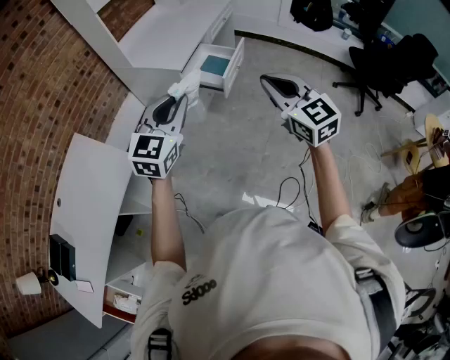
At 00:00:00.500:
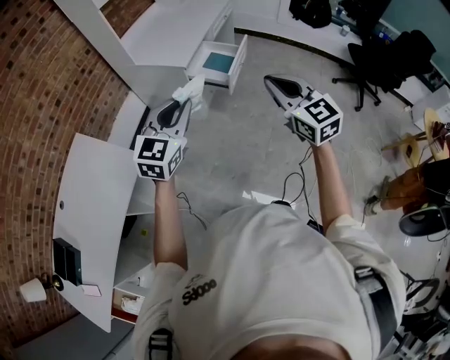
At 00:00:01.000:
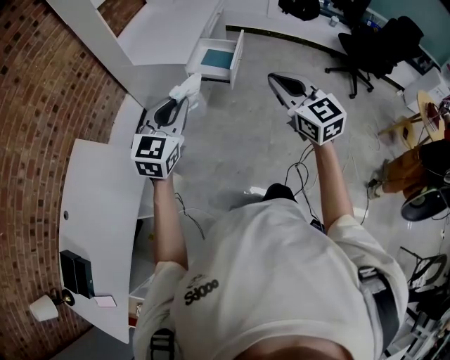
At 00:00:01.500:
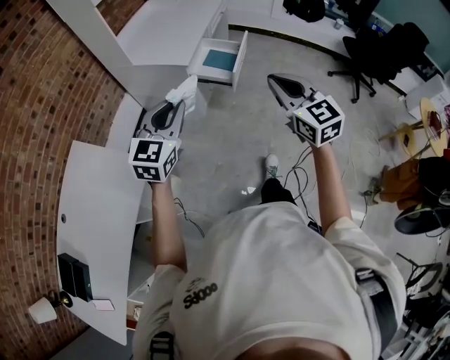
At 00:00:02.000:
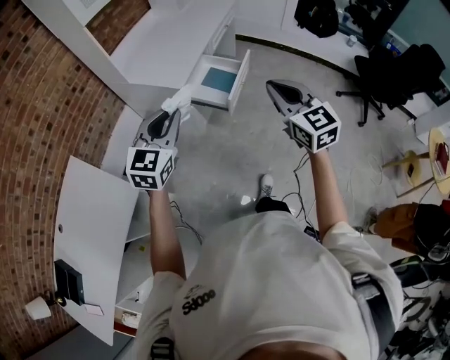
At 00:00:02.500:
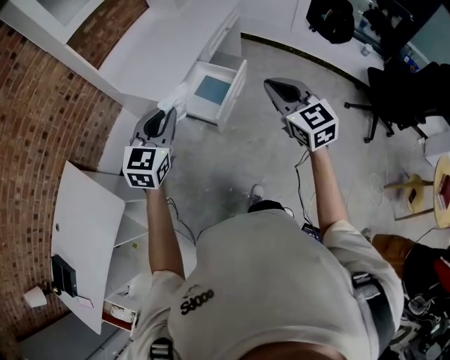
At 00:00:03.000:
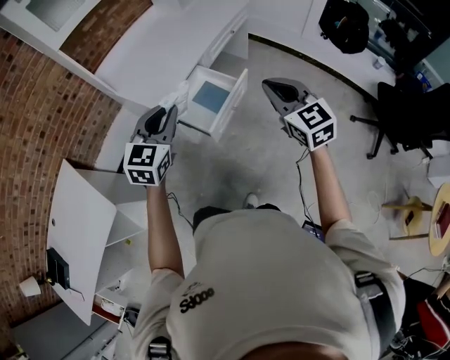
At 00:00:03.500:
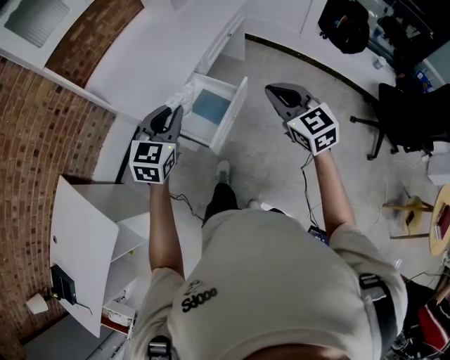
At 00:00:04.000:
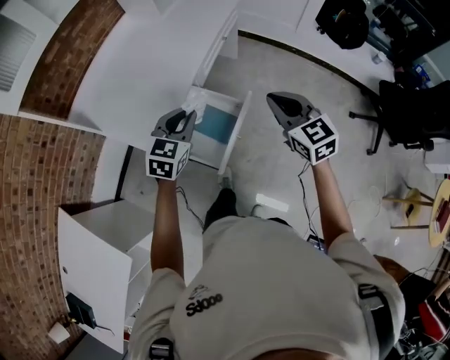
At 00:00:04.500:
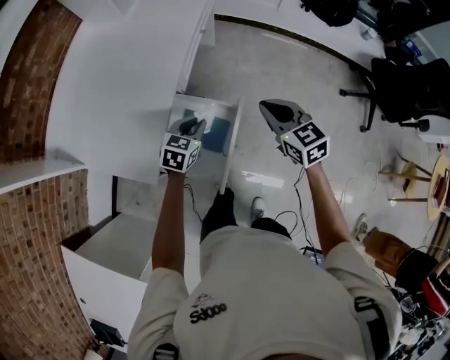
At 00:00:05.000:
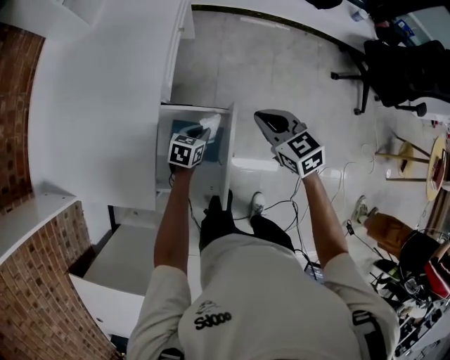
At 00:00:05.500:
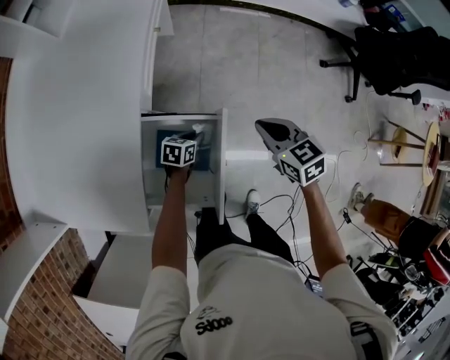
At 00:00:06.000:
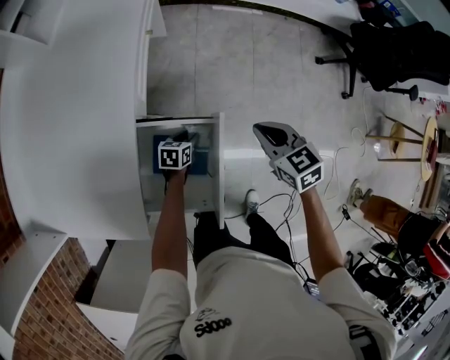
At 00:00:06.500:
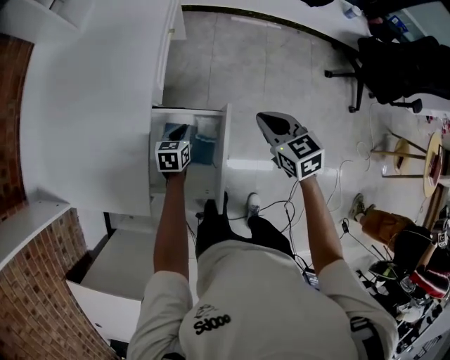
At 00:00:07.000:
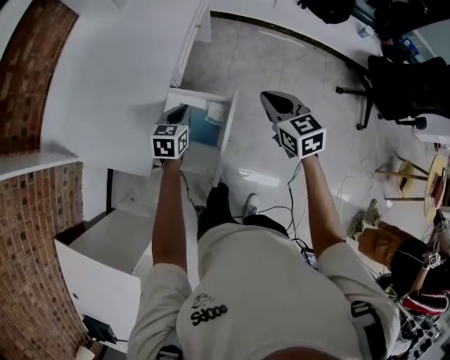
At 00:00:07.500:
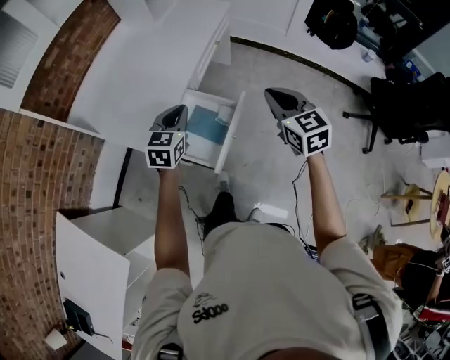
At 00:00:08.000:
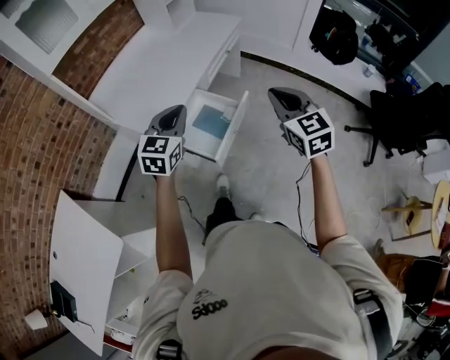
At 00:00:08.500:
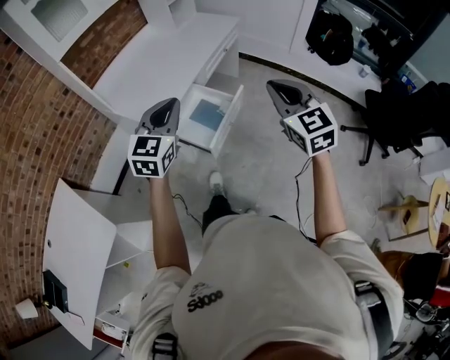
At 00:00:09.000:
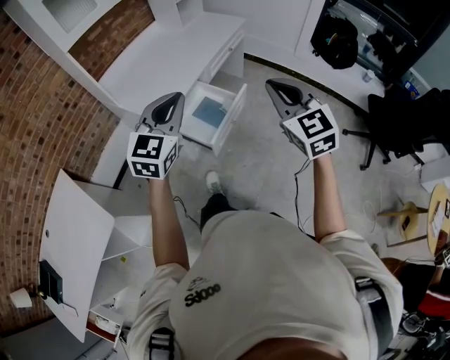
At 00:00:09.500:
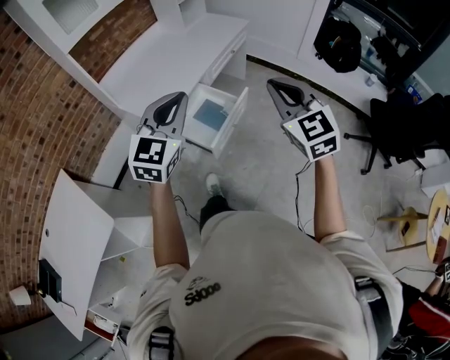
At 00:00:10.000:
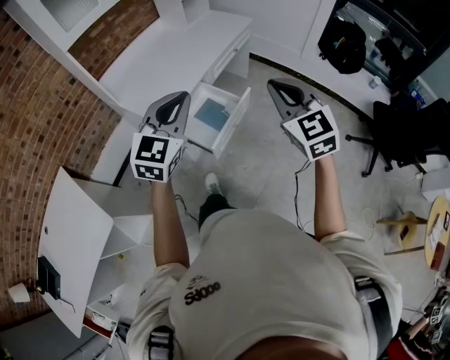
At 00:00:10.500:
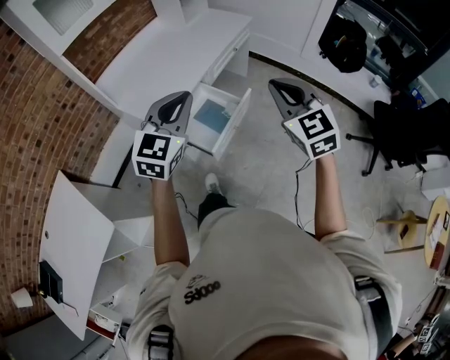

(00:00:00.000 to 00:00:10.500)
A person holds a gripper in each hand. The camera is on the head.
00:00:00.000 - 00:00:02.000: Both grippers move forward, some 15 cm.
00:00:02.000 - 00:00:04.000: Both grippers are carried forward, some 50 cm.
00:00:04.000 - 00:00:06.500: The right gripper shifts roughly 20 cm downward, and rotates about 30 degrees. The left gripper heads downward, covering approximately 35 cm, swivels roughly 30 degrees, and opens, then closes again.
00:00:06.500 - 00:00:08.500: Both grippers move backward, upward and to the left, roughly 50 cm. The left gripper points its fingers roughly 40 degrees further upward, while the right gripper changes its angle by about 40 degrees.
00:00:08.500 - 00:00:10.500: The right gripper shifts roughly 5 cm forward; the left gripper ends up about 5 cm from where it was.

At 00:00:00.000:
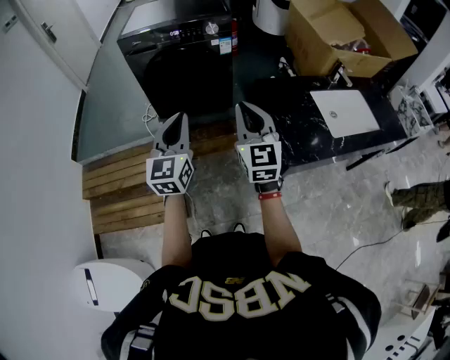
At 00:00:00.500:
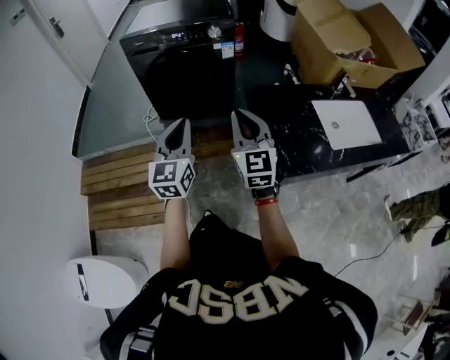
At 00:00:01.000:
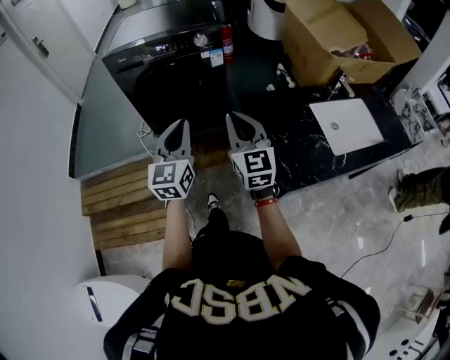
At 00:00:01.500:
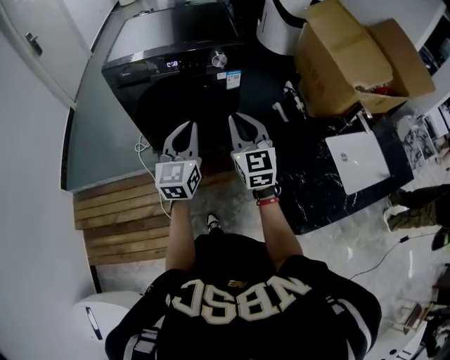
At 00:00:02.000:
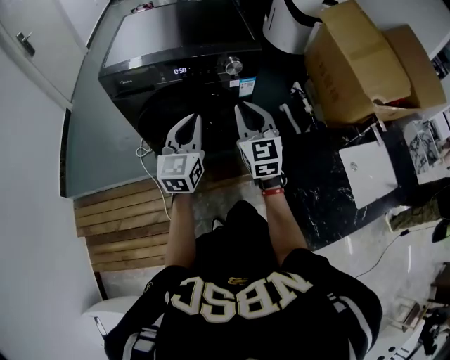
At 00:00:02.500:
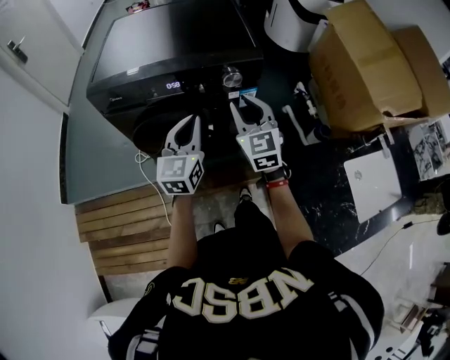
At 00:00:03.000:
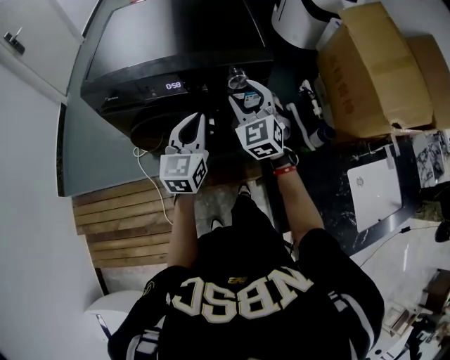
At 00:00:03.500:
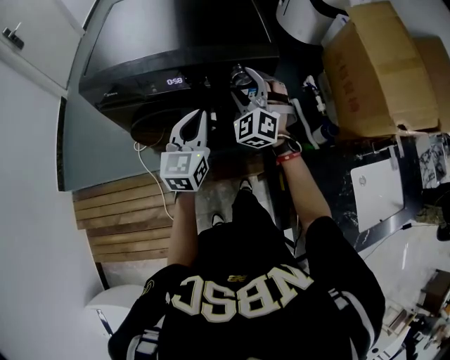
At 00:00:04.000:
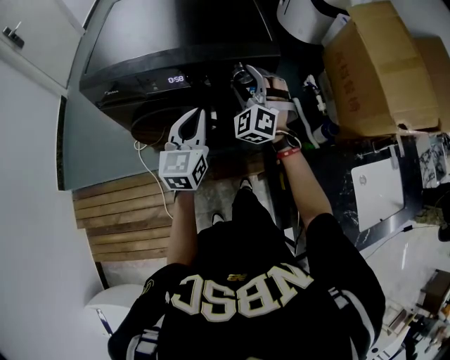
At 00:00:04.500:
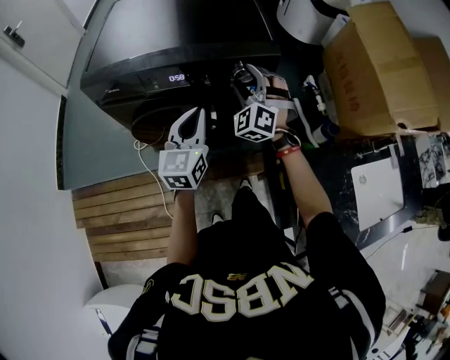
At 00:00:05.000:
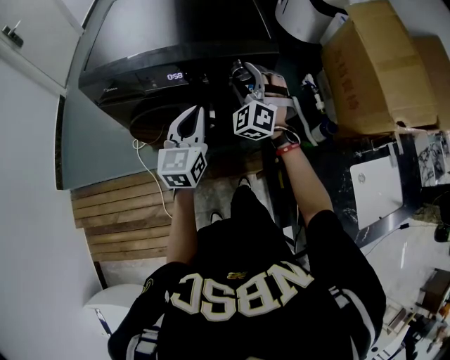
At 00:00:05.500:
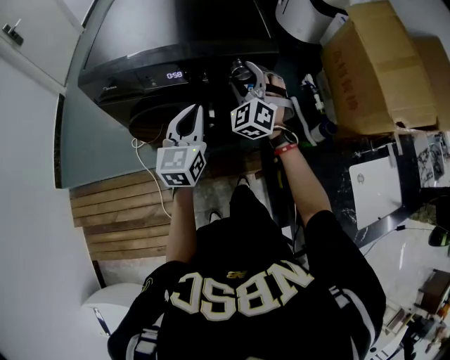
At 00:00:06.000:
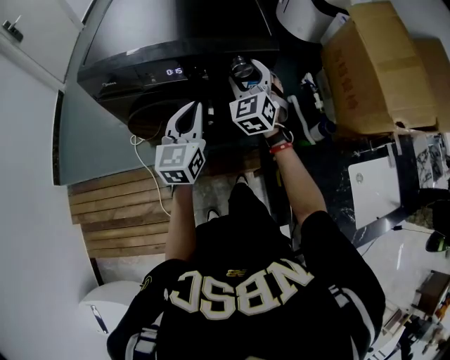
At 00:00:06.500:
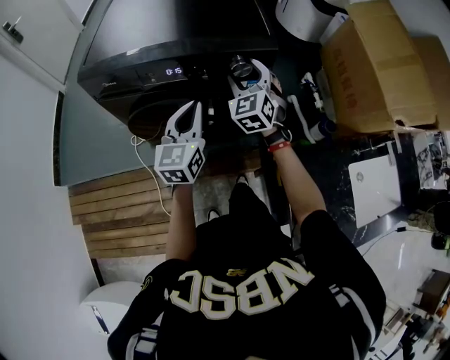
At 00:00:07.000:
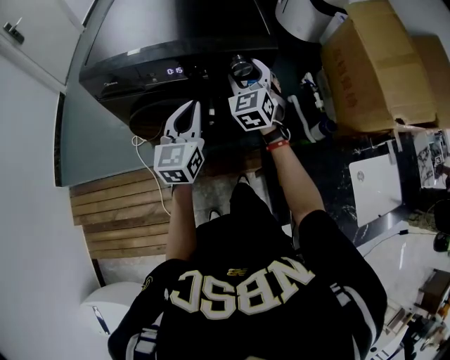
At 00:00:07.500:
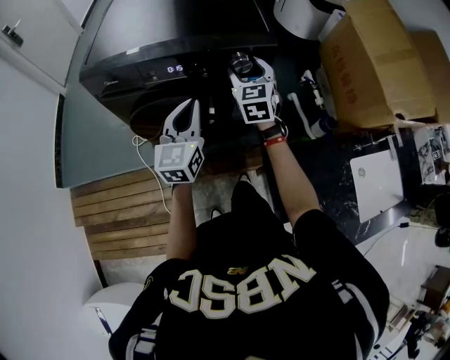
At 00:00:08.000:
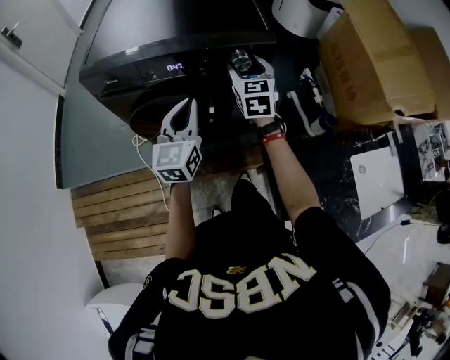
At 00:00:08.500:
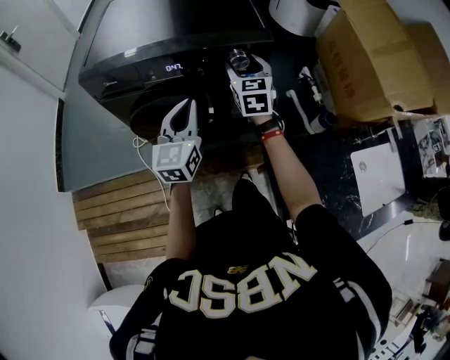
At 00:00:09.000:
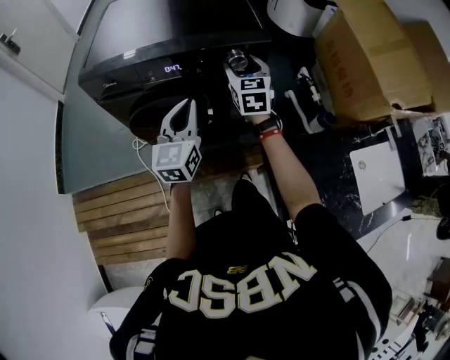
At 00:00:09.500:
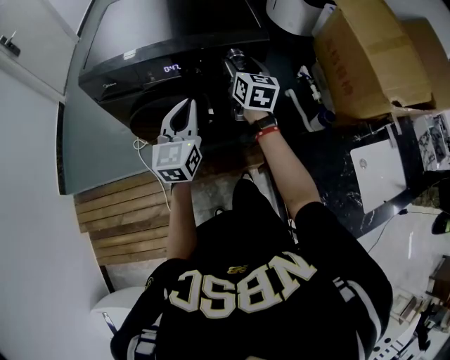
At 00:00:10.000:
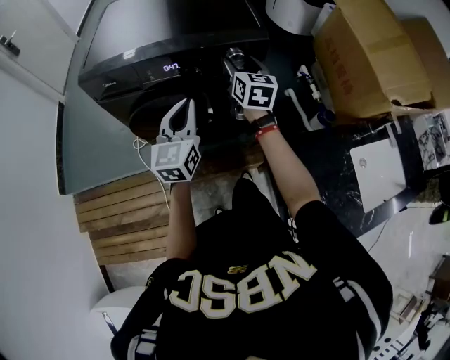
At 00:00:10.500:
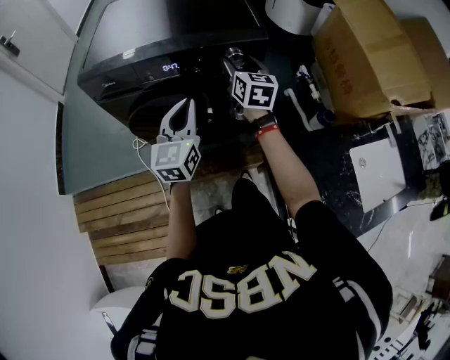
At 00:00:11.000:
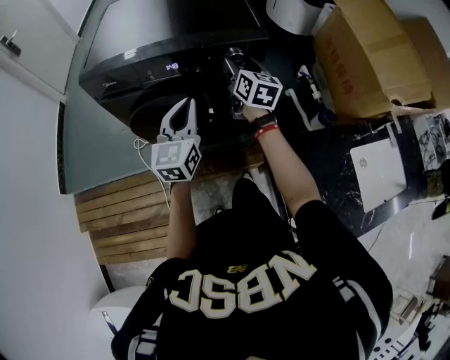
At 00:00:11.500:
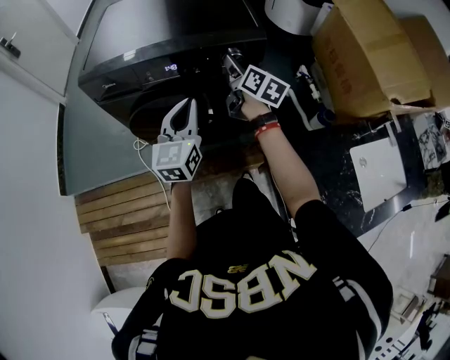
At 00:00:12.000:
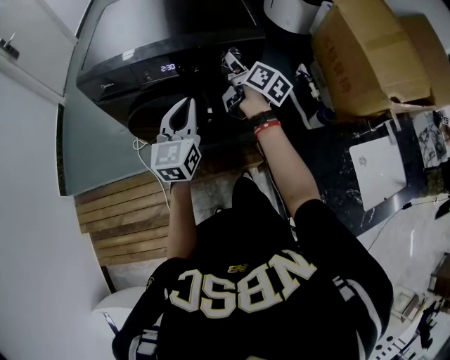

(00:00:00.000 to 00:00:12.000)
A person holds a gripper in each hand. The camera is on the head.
00:00:00.000 - 00:00:02.000: Both grippers travel together forward, some 35 cm.
00:00:02.000 - 00:00:04.000: The left gripper moves forward, approximately 10 cm. Meanwhile the right gripper moves forward, roughly 20 cm, rolls counterclockwise, seen from behind, by about 50 degrees, and opens.
00:00:04.000 - 00:00:06.000: The right gripper swivels approximately 30 degrees.
00:00:06.000 - 00:00:08.000: The right gripper swivels some 30 degrees.
00:00:08.000 - 00:00:10.000: The right gripper rotates about 20 degrees.
00:00:10.000 - 00:00:12.000: The right gripper rolls clockwise, seen from behind, by about 40 degrees.

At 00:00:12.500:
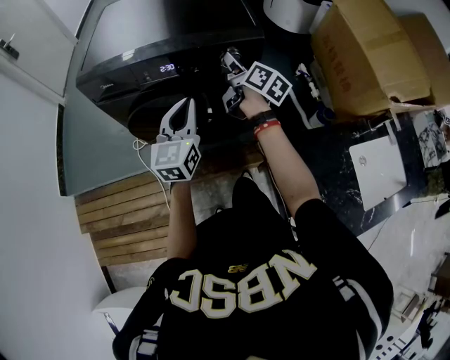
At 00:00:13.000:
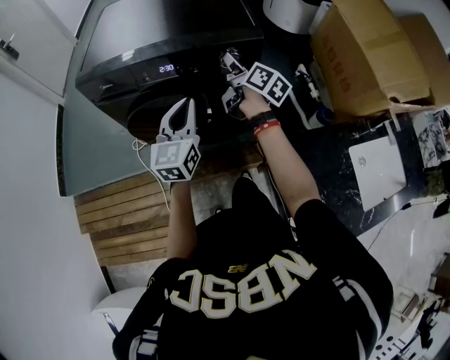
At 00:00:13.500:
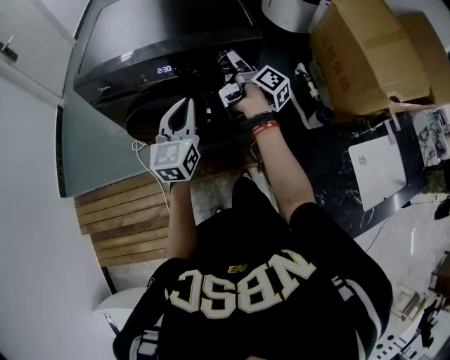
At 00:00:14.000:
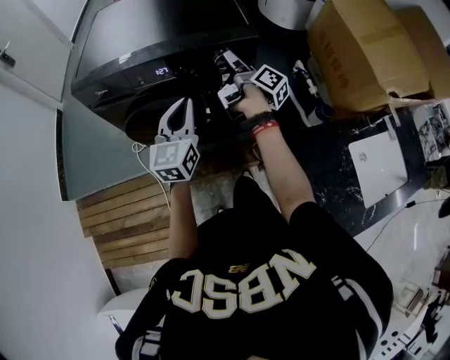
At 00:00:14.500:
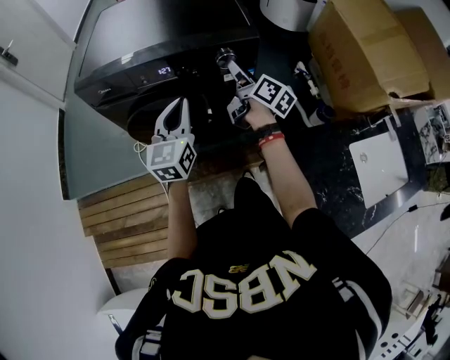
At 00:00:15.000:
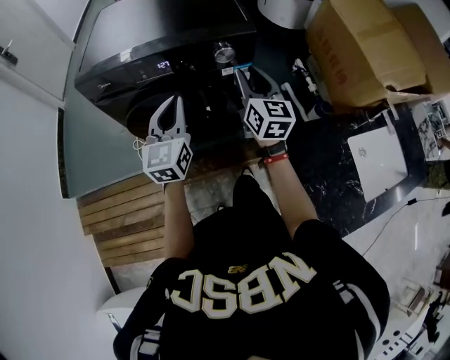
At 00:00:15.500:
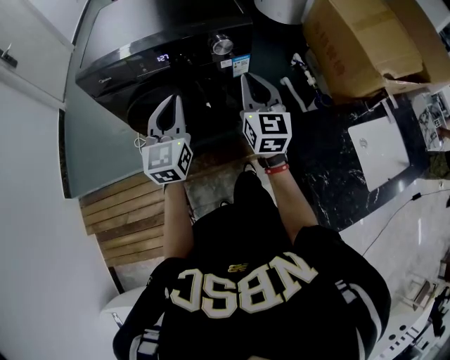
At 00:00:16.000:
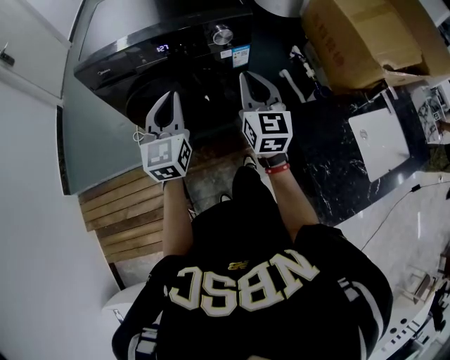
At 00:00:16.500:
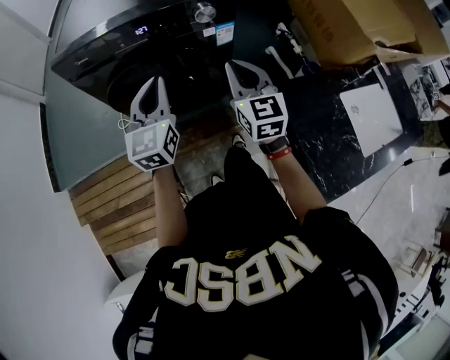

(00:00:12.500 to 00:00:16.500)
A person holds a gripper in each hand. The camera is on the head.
00:00:14.500 - 00:00:16.500: The right gripper heads backward, covering some 15 cm, twists about 60 degrees counterclockwise, seen from behind, and closes, while the left gripper heads backward, covering about 5 cm.
